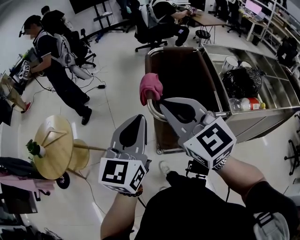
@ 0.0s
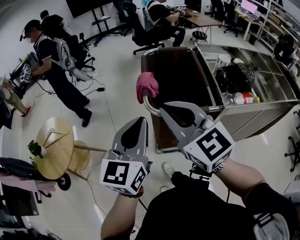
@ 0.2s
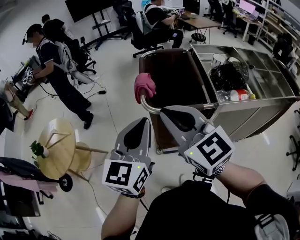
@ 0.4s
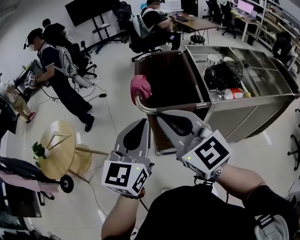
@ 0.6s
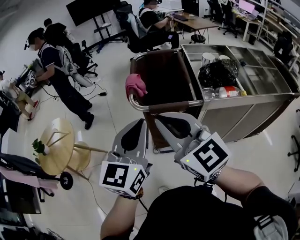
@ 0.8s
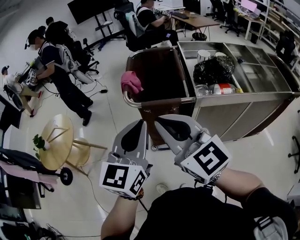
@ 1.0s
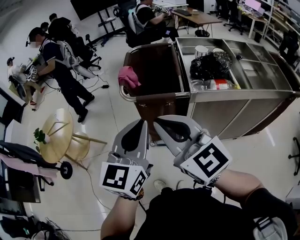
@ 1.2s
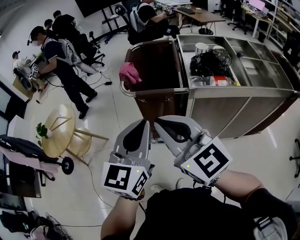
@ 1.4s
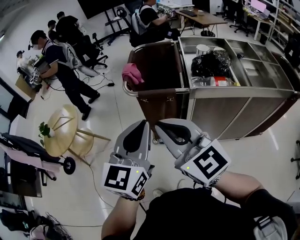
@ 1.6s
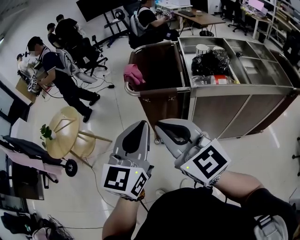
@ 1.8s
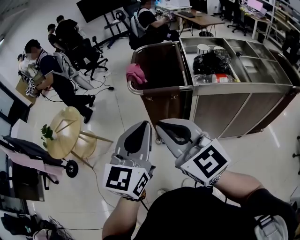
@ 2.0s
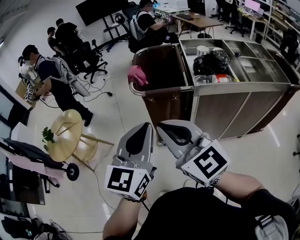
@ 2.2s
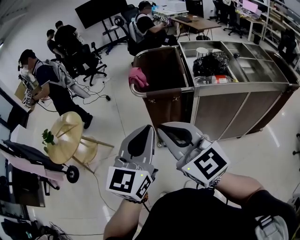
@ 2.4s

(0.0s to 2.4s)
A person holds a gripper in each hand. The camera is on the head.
0.0s - 1.2s: The grippers both shift backward and to the right by some 35 cm.
1.2s - 2.4s: The two grippers go roughly 10 cm backward.

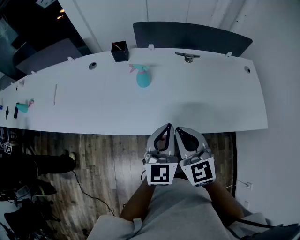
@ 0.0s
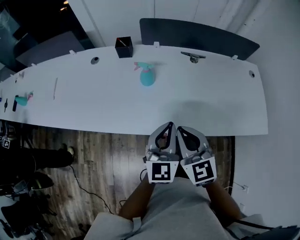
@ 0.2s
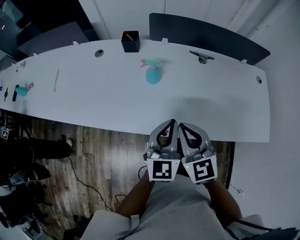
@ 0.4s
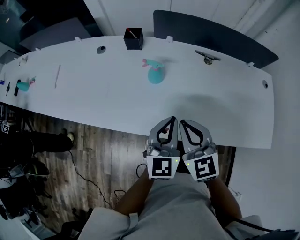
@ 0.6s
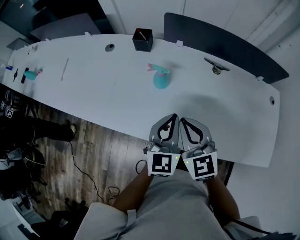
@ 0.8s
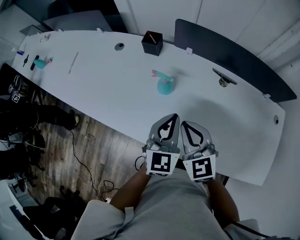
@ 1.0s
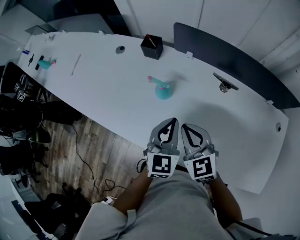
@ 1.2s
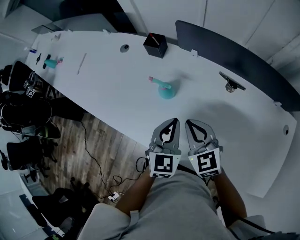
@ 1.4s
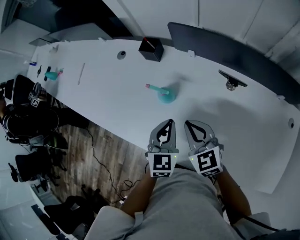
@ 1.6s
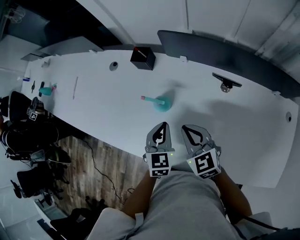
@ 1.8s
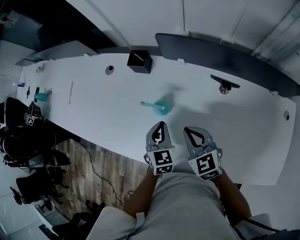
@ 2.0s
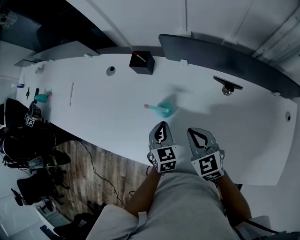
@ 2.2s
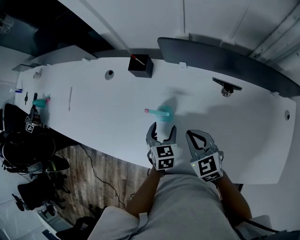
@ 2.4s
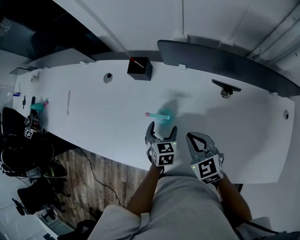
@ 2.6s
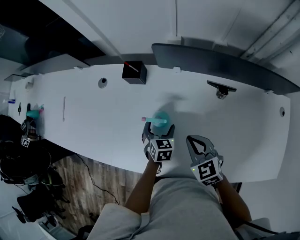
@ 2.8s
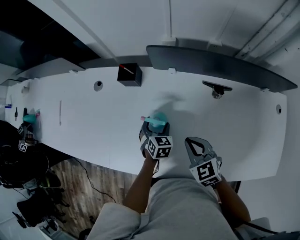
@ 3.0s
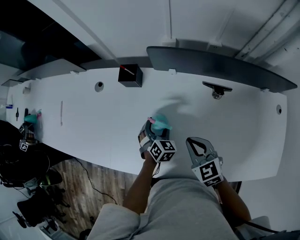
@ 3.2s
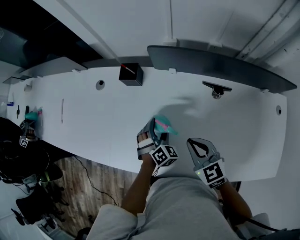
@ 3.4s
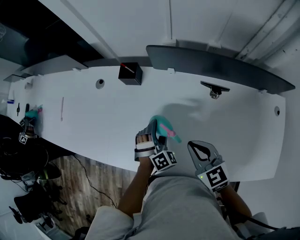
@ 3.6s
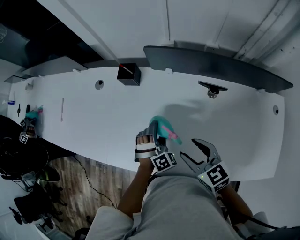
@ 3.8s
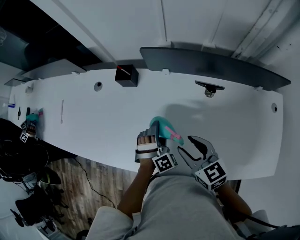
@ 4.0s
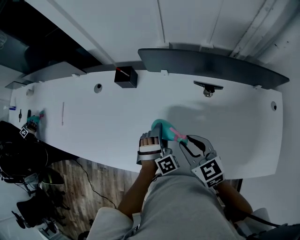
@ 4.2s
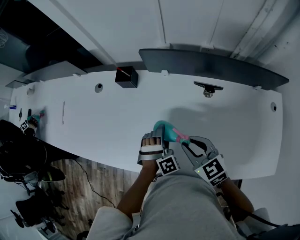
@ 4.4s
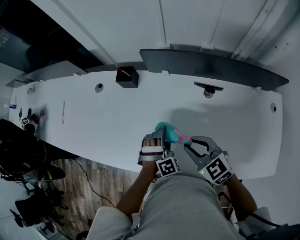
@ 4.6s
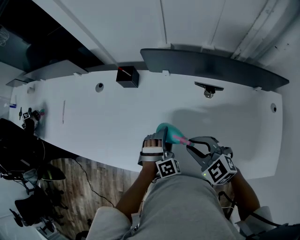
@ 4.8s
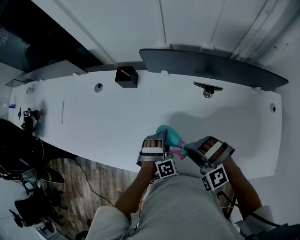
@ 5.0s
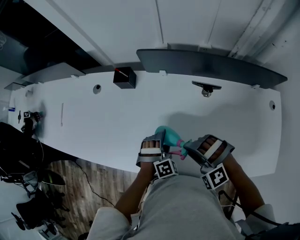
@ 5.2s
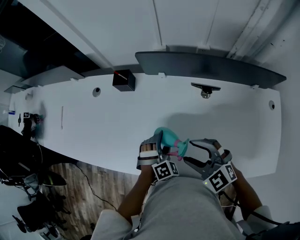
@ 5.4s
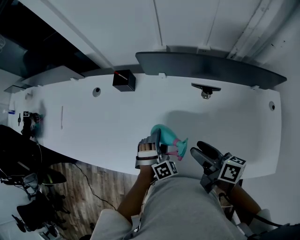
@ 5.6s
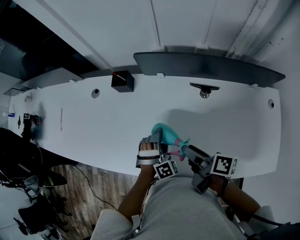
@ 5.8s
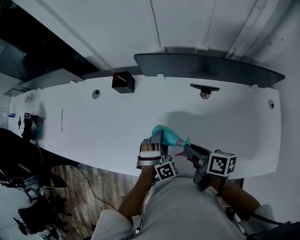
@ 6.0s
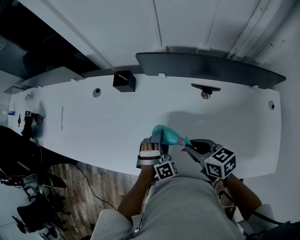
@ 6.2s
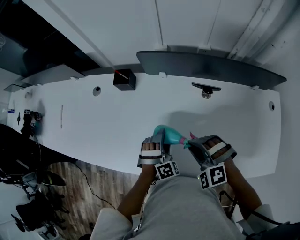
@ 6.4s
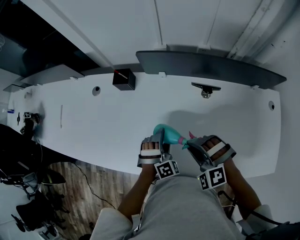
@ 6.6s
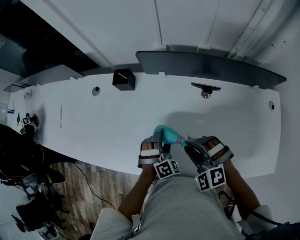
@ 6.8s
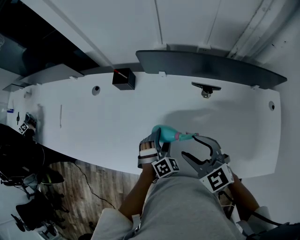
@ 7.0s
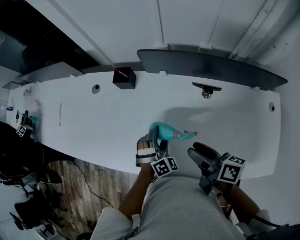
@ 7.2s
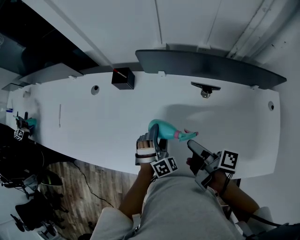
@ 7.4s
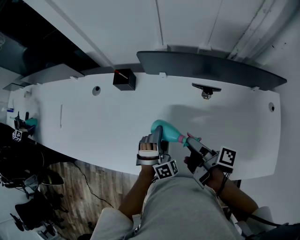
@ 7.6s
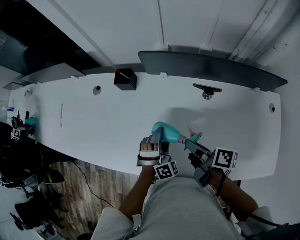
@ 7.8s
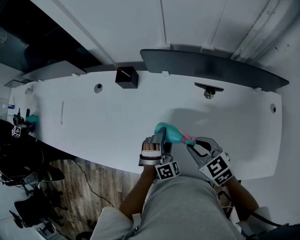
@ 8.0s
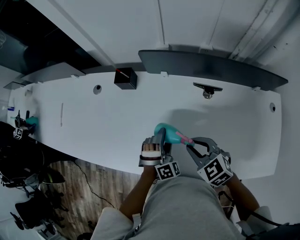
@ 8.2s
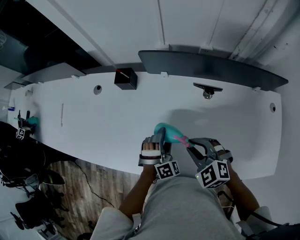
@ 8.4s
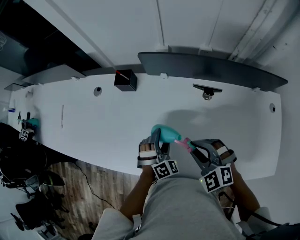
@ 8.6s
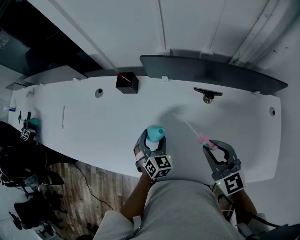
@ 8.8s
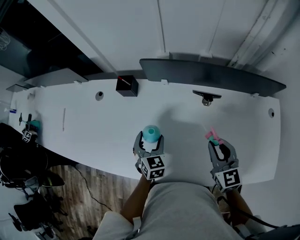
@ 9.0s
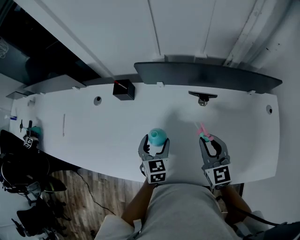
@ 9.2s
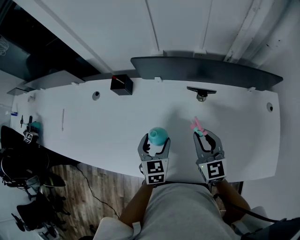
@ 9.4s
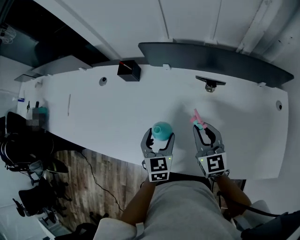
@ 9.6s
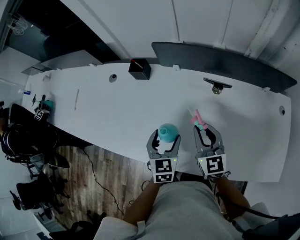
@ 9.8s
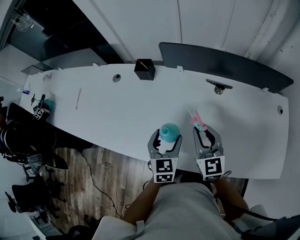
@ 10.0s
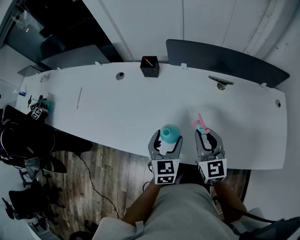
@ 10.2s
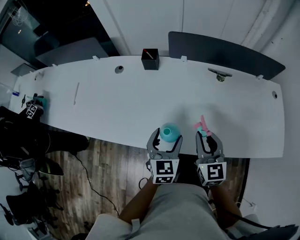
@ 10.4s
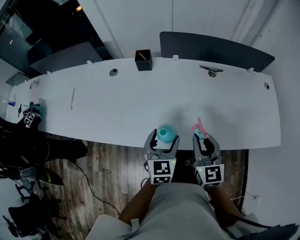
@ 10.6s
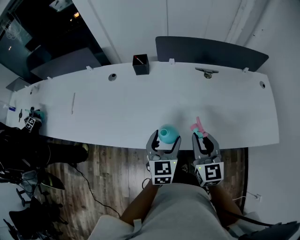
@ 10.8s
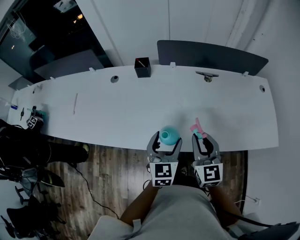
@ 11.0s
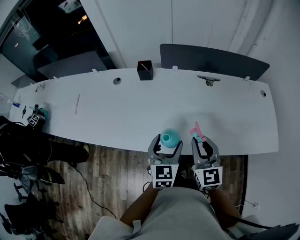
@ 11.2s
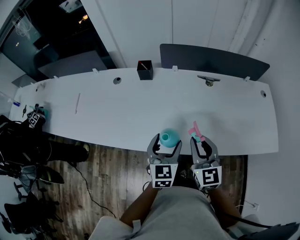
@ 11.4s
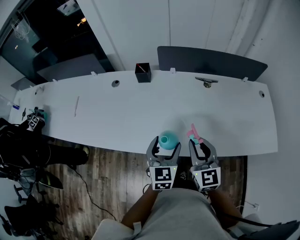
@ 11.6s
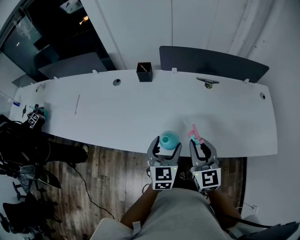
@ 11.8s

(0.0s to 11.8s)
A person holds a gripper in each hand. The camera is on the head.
0.0s - 1.4s: Both grippers travel together forward, approximately 20 cm. The left gripper rotates about 30 degrees. The right gripper swivels roughly 30 degrees.
1.4s - 3.0s: The right gripper moves downward, some 5 cm. The left gripper moves downward and forward, some 25 cm, swivels about 30 degrees, and opens its fingers.
3.0s - 4.4s: The right gripper goes roughly 5 cm upward, and opens, then closes once more. Meanwhile the left gripper shifts roughly 10 cm backward and upward, and rolls clockwise, seen from behind, by approximately 60 degrees.
4.4s - 6.0s: The right gripper rolls clockwise, seen from behind, by roughly 60 degrees, and opens, then closes again.
6.0s - 7.4s: The right gripper swivels approximately 30 degrees, and opens its fingers.
7.4s - 8.8s: The left gripper turns by some 40 degrees; the right gripper moves upward, approximately 5 cm, rolls counterclockwise, seen from behind, by roughly 100 degrees, and closes its fingers.
8.8s - 10.4s: The left gripper shifts some 20 cm backward, to the left and upward, and rotates approximately 30 degrees. The right gripper heads to the left and backward, covering roughly 15 cm, and swivels about 20 degrees.
10.4s - 11.8s: The right gripper shifts about 5 cm backward. The left gripper ends up about 5 cm from where it was.

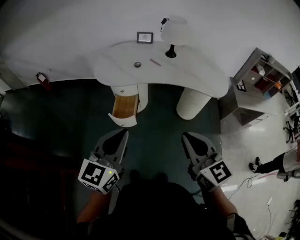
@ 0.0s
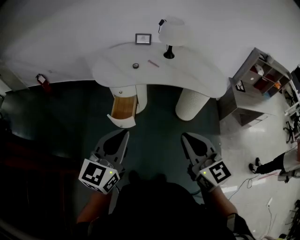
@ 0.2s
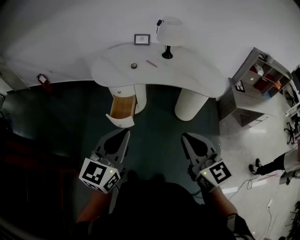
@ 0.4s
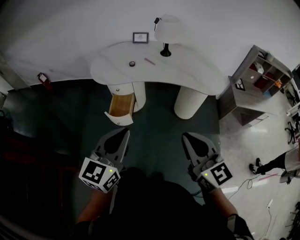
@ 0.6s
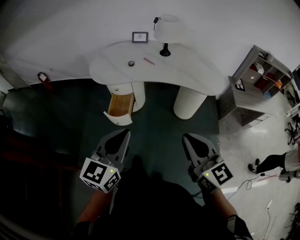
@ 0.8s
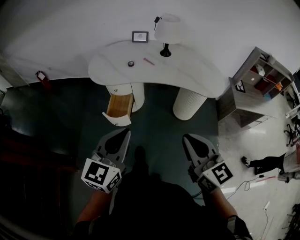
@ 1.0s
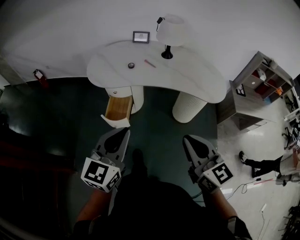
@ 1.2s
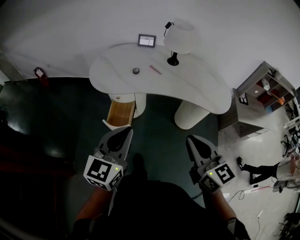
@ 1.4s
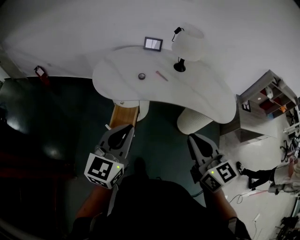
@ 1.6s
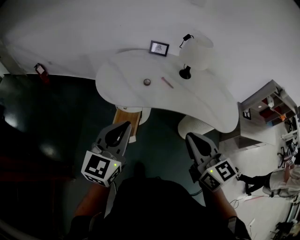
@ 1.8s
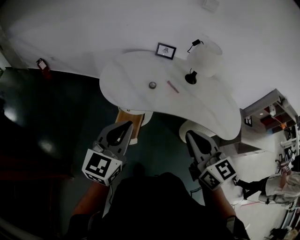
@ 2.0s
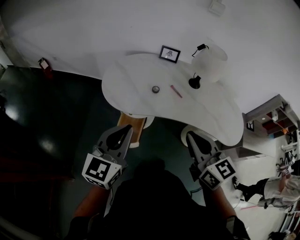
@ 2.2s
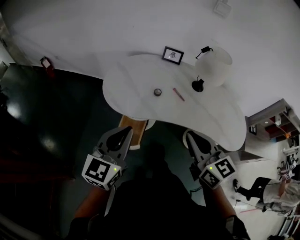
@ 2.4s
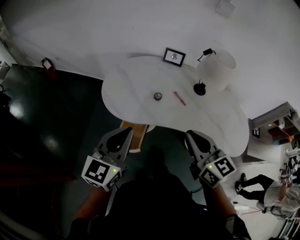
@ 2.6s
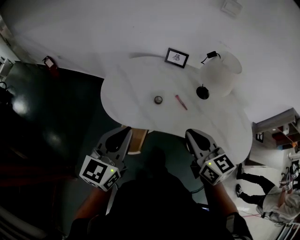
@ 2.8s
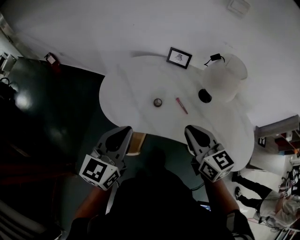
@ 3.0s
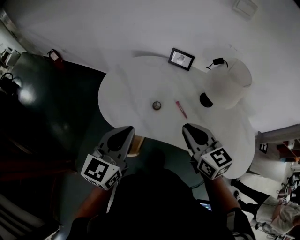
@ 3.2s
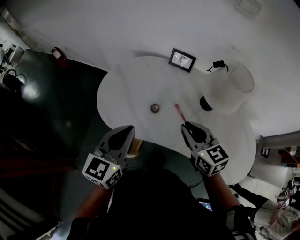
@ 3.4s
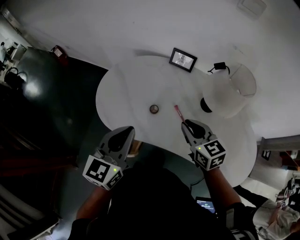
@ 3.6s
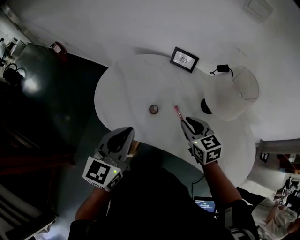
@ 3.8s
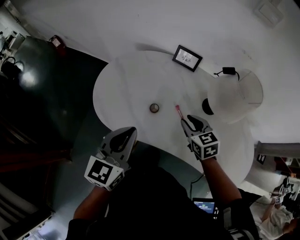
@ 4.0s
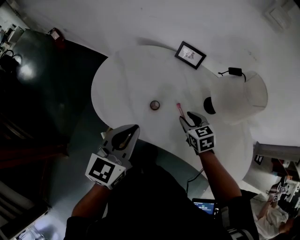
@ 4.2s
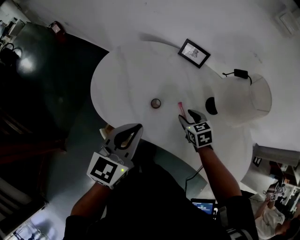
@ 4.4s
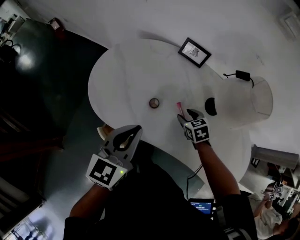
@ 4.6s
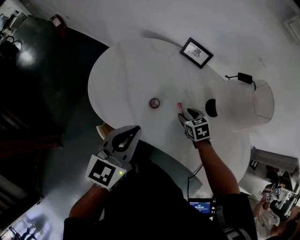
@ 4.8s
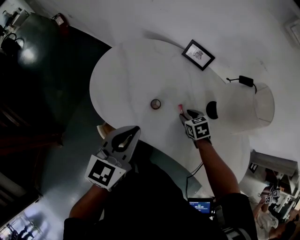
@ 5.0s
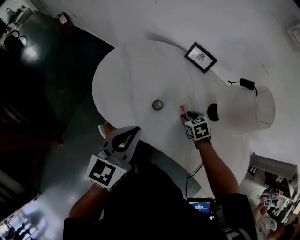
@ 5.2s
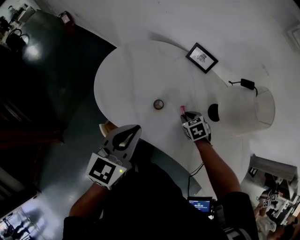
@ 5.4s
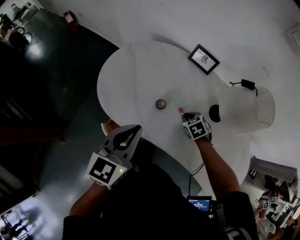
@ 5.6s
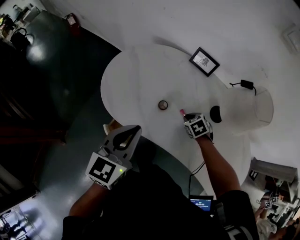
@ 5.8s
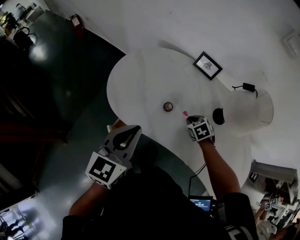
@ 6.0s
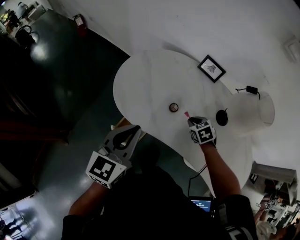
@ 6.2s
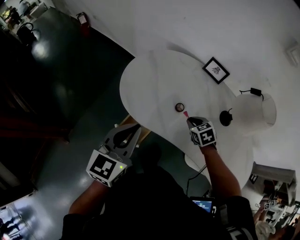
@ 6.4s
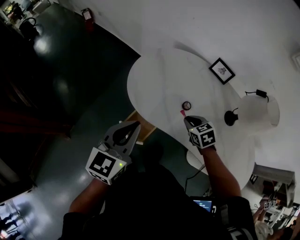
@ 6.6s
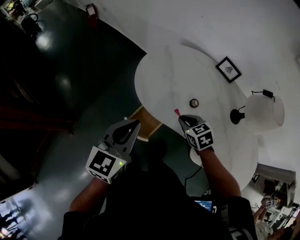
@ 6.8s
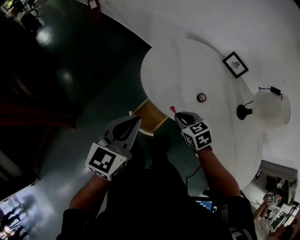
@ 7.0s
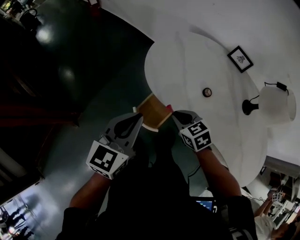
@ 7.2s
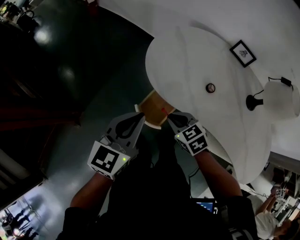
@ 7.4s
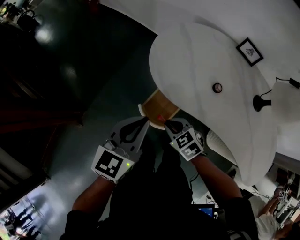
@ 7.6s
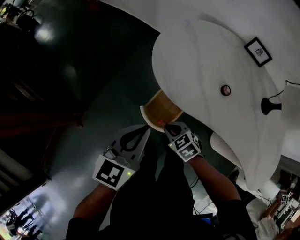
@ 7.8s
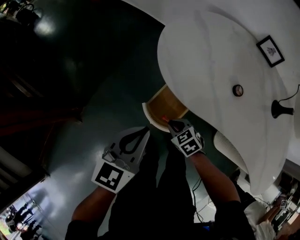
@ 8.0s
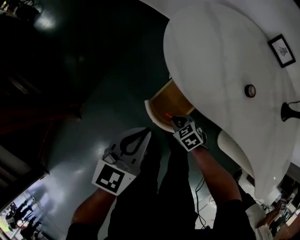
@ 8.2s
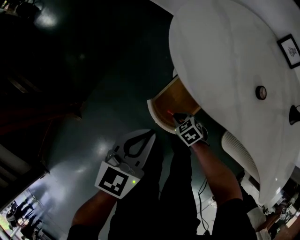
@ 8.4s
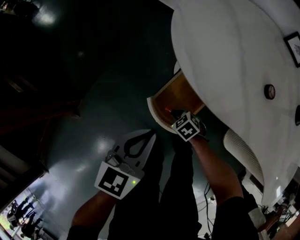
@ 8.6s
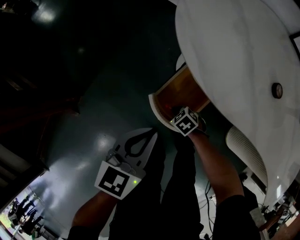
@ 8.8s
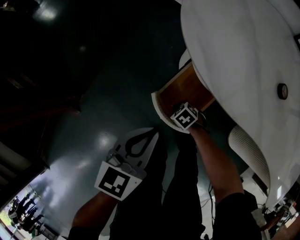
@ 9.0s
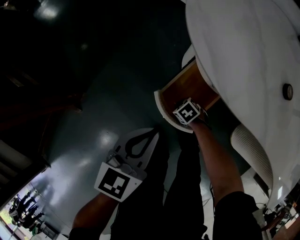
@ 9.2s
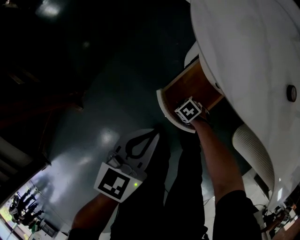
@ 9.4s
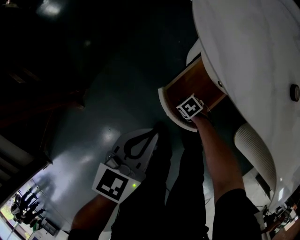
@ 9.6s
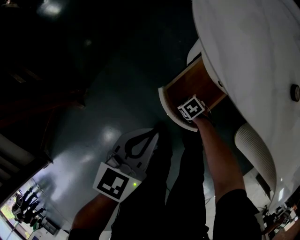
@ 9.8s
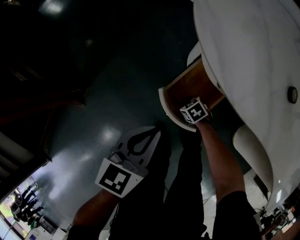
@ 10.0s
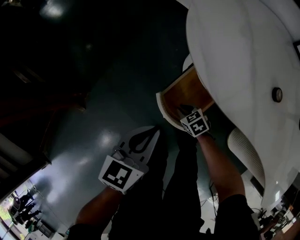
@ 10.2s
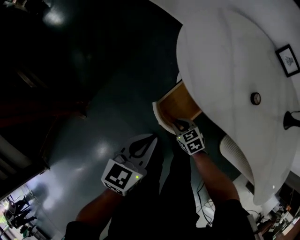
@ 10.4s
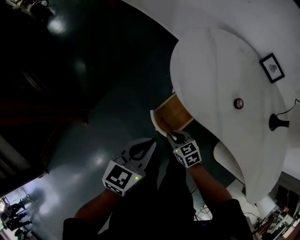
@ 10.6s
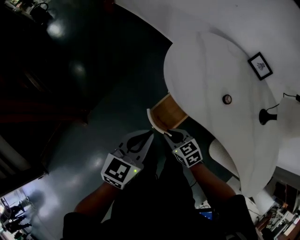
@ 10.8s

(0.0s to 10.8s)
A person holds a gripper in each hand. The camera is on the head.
0.0s - 1.6s: The two grippers go roughly 15 cm forward.
1.6s - 3.0s: The two grippers go about 30 cm forward.
3.0s - 4.6s: The left gripper travels forward, to the right and downward by roughly 15 cm, while the right gripper goes some 35 cm downward and forward, points its fingers roughly 40 degrees further downward, and opens up.
4.6s - 6.2s: The left gripper shifts about 10 cm to the left; the right gripper goes approximately 5 cm to the left, and closes its fingers.
6.2s - 7.8s: The left gripper goes some 20 cm to the left and downward, while the right gripper is displaced to the left by some 35 cm, and turns by about 20 degrees.
7.8s - 9.2s: The left gripper heads downward, covering some 20 cm. The right gripper travels downward by roughly 30 cm, and swivels approximately 30 degrees.
9.2s - 10.8s: The right gripper shifts roughly 35 cm upward, and swivels some 40 degrees. The left gripper goes approximately 20 cm upward.
